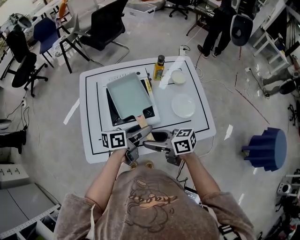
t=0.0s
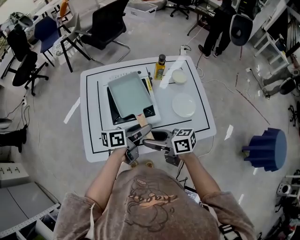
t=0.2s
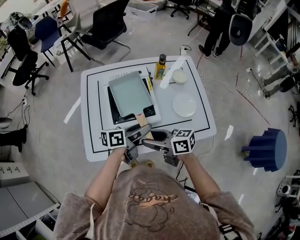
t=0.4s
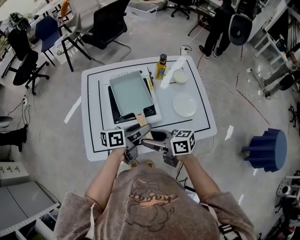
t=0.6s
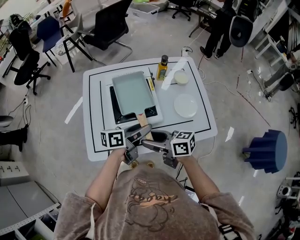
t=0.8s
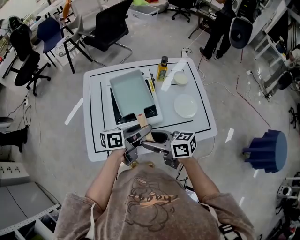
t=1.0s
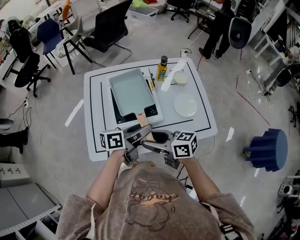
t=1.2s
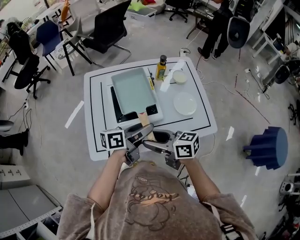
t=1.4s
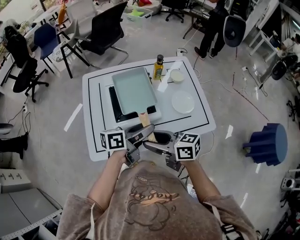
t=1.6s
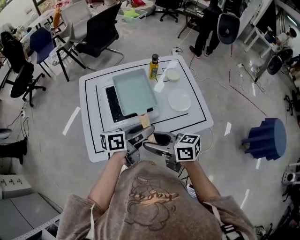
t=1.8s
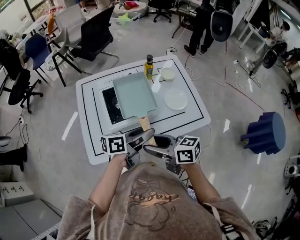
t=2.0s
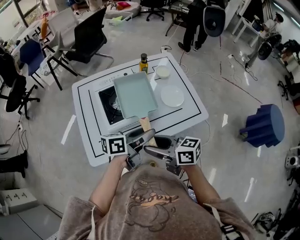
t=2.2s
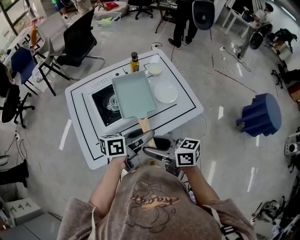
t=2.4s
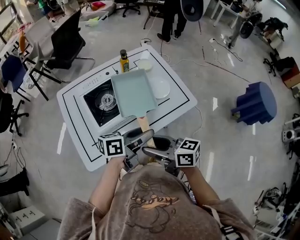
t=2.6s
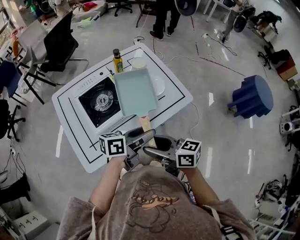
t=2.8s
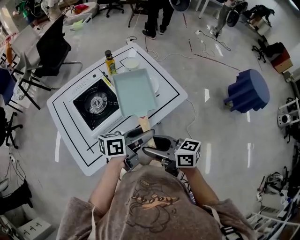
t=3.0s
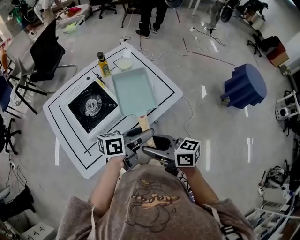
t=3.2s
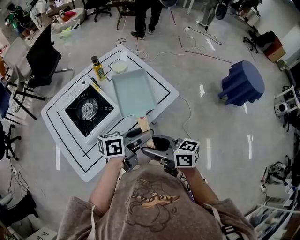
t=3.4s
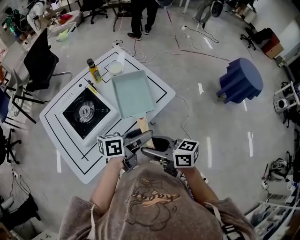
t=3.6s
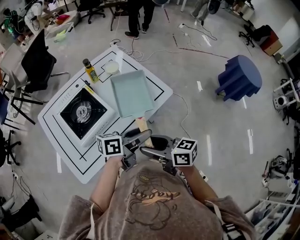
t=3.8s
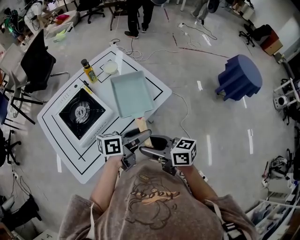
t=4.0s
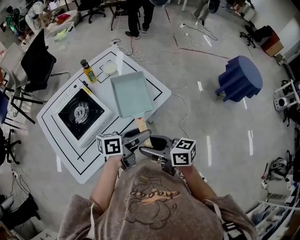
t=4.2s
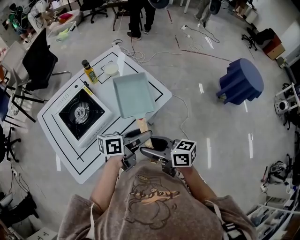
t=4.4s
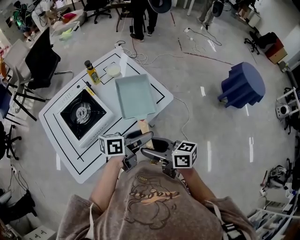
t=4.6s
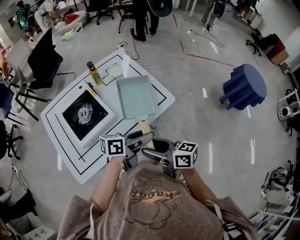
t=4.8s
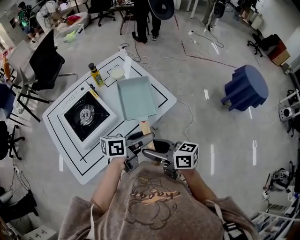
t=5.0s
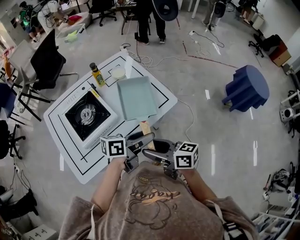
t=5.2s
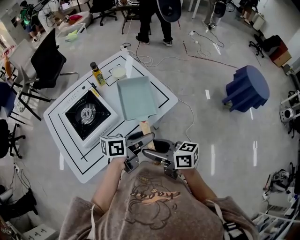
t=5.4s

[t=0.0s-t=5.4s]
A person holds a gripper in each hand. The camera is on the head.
t=0.0s to t=1.4s: The grippers move only a little.
t=1.4s to t=2.8s: The left gripper moves some 15 cm, and rotates roughly 30 degrees. Meanwhile the right gripper changes place by approximately 10 cm, and turns by some 30 degrees.
t=2.8s to t=4.0s: Both grippers travel together to the right, approximately 10 cm.
t=4.0s to t=5.4s: The grippers make only small movements.

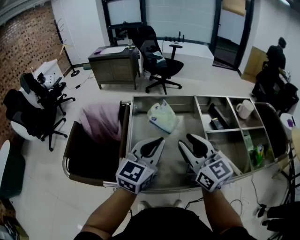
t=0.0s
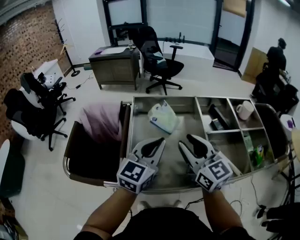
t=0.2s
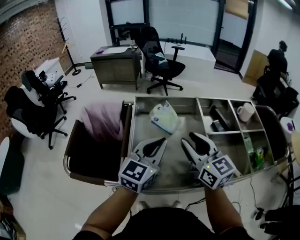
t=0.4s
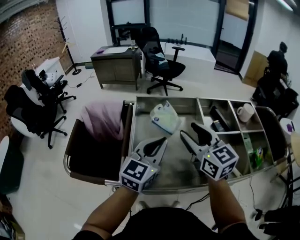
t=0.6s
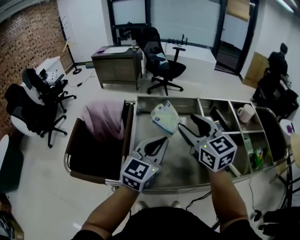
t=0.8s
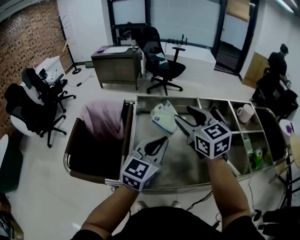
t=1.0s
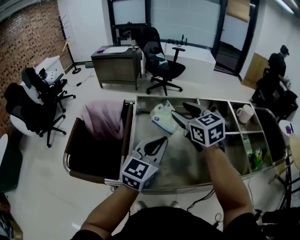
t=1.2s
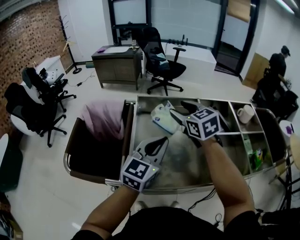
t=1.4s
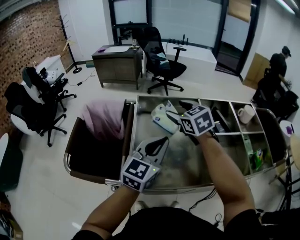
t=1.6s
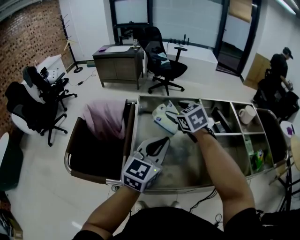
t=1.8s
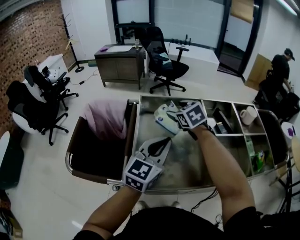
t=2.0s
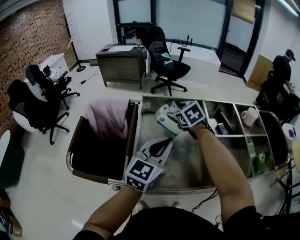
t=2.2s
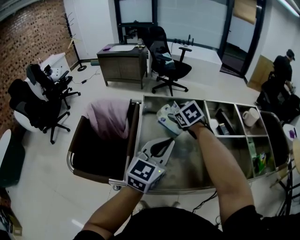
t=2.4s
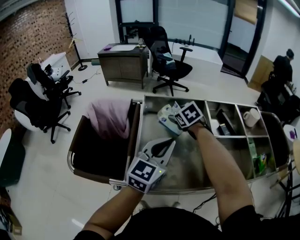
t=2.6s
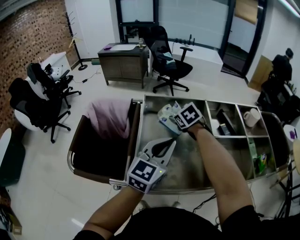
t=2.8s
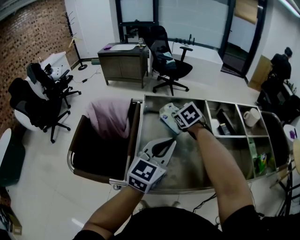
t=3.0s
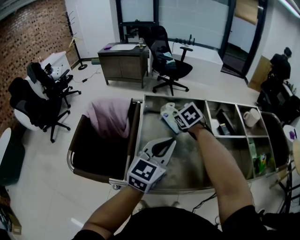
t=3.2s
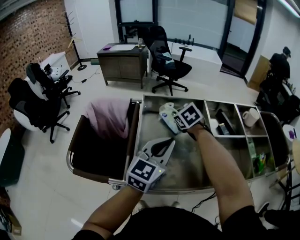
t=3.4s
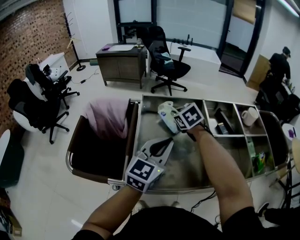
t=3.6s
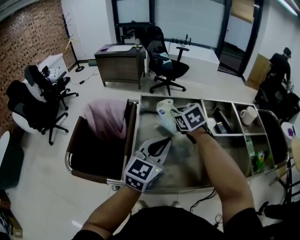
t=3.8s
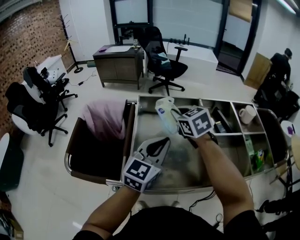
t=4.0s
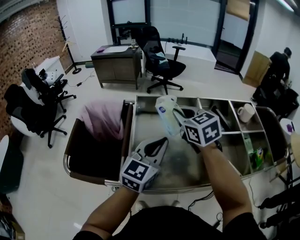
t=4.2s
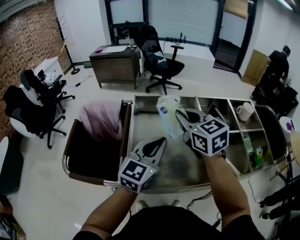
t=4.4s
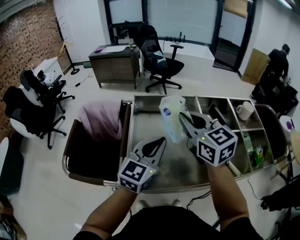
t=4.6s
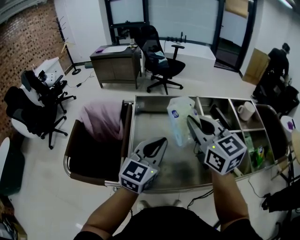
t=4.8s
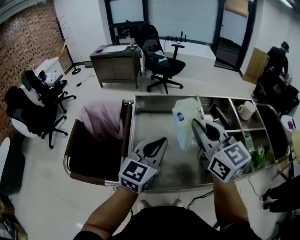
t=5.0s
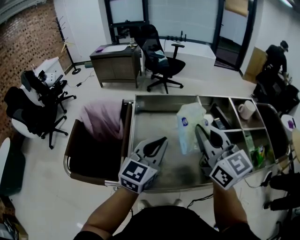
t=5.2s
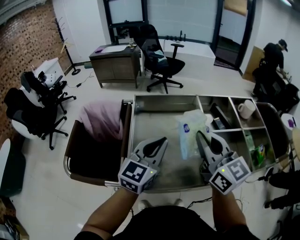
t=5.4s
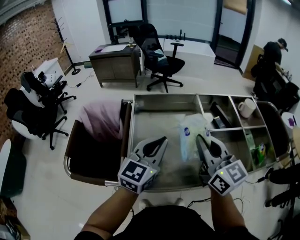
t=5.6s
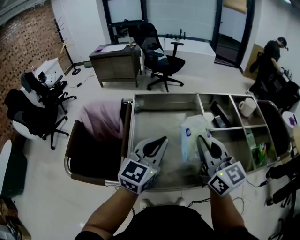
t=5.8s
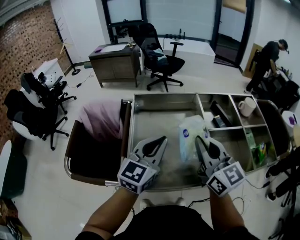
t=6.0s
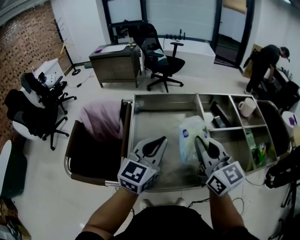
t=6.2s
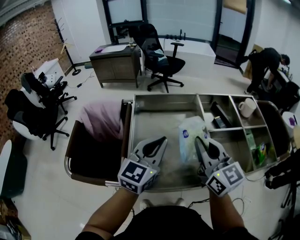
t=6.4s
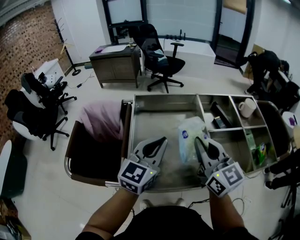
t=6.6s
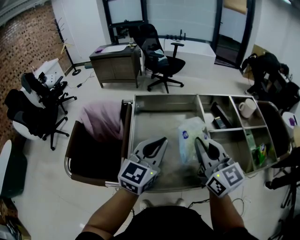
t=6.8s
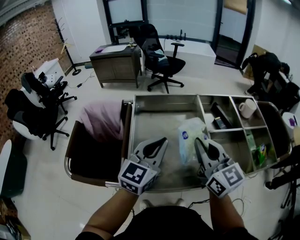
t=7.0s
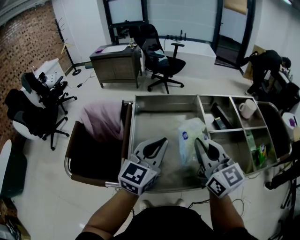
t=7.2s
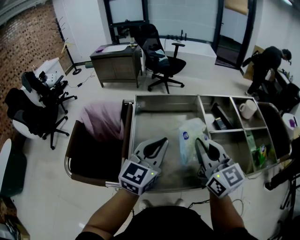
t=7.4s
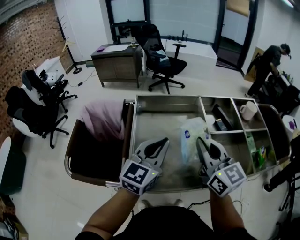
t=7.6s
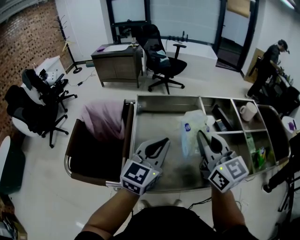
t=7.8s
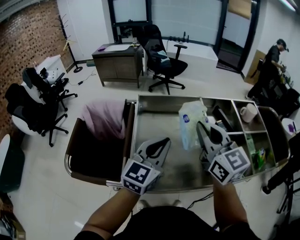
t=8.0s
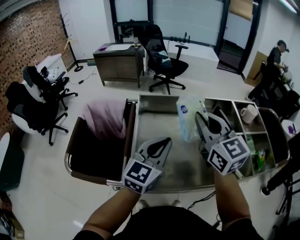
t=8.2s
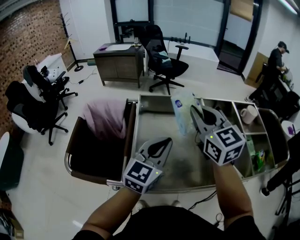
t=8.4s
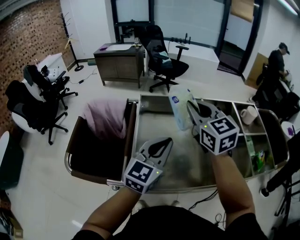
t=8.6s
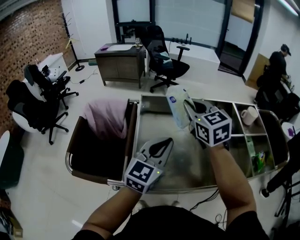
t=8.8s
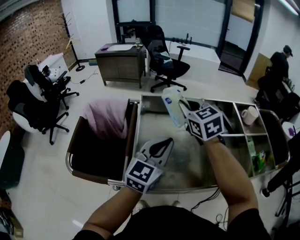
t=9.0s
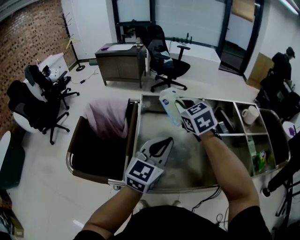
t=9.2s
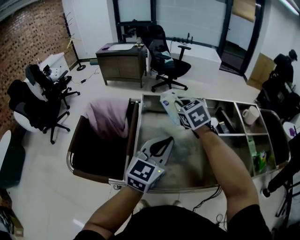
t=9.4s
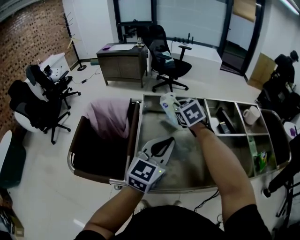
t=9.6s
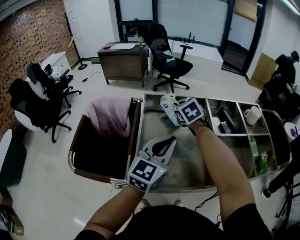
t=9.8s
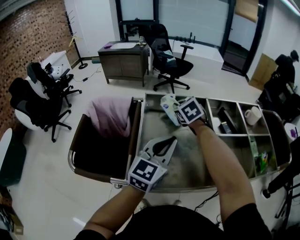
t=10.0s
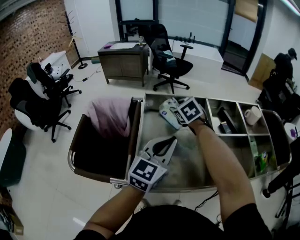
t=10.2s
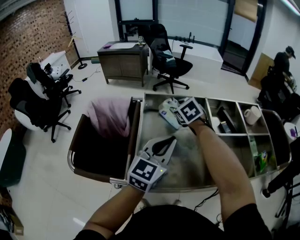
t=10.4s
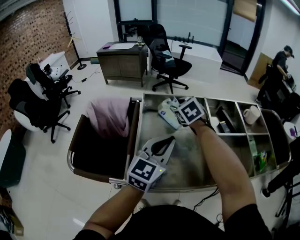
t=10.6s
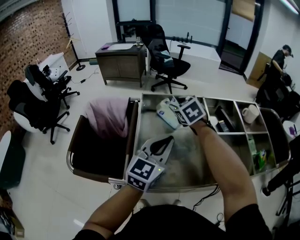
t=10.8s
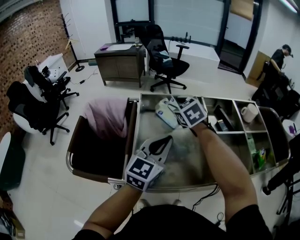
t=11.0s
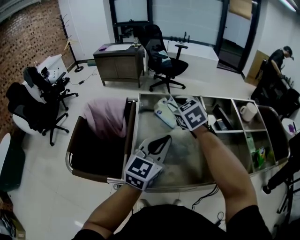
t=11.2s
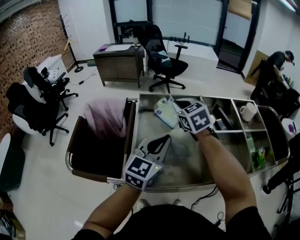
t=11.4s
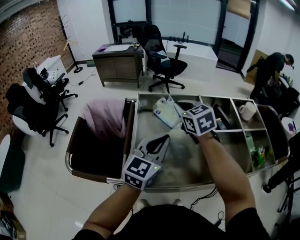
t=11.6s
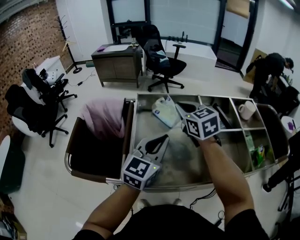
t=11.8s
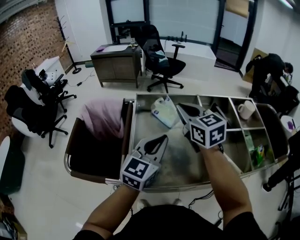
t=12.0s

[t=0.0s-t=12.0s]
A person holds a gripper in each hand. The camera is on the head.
t=0.0s to t=1.6s: The right gripper goes approximately 15 cm forward, swivels roughly 30 degrees, and opens its fingers.
t=1.6s to t=3.0s: The right gripper shifts roughly 10 cm downward, and closes its fingers.
t=3.0s to t=4.4s: The right gripper goes about 20 cm upward and backward, and angles its fingers upward, by roughly 30 degrees.
t=4.4s to t=6.0s: The right gripper is displaced backward and to the right by some 15 cm, and turns by some 20 degrees.
t=6.0s to t=7.6s: Neither gripper changes place.
t=7.6s to t=9.0s: The right gripper moves forward and to the left, roughly 20 cm, and turns by approximately 30 degrees.
t=9.0s to t=10.4s: The right gripper travels downward and forward by approximately 15 cm, swivels about 20 degrees, and opens.
t=10.4s to t=12.0s: The right gripper is displaced upward and backward by about 15 cm, turns by some 30 degrees, and closes up.

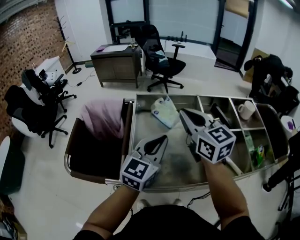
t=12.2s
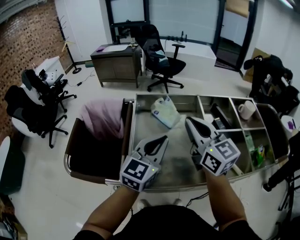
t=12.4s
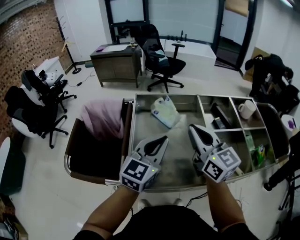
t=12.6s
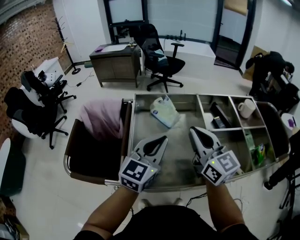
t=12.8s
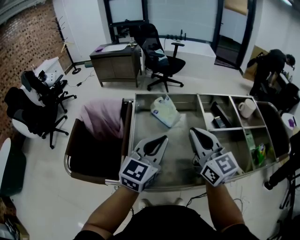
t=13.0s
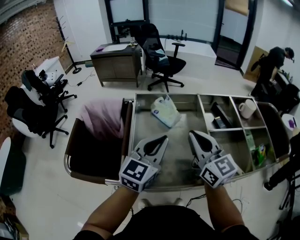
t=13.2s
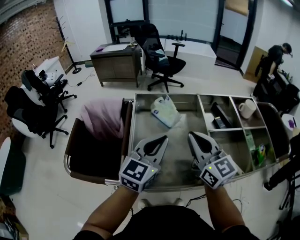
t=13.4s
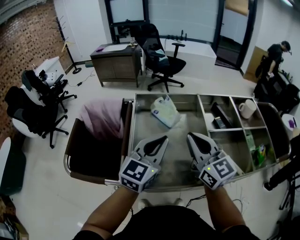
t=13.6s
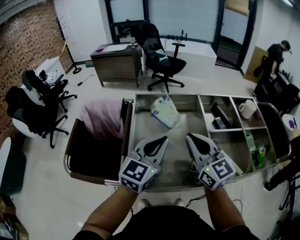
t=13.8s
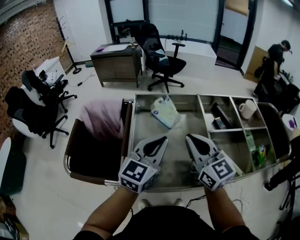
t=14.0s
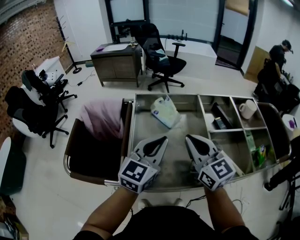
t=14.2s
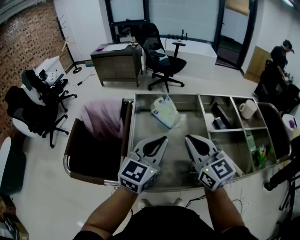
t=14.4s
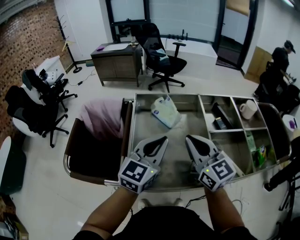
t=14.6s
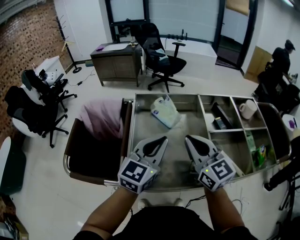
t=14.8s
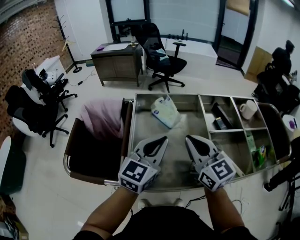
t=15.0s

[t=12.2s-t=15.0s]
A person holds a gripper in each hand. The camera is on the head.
t=12.2s to t=13.6s: The right gripper shifts roughly 5 cm backward.
t=13.6s to t=15.0s: Both grippers stay about where they are.

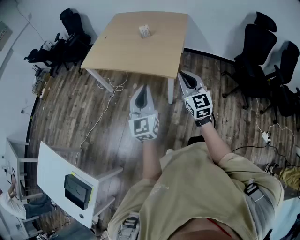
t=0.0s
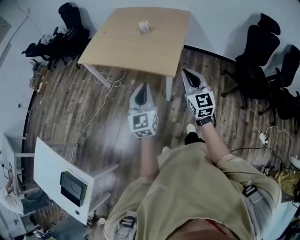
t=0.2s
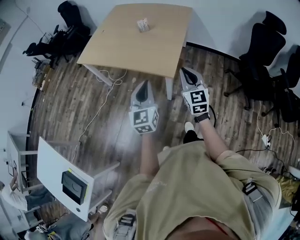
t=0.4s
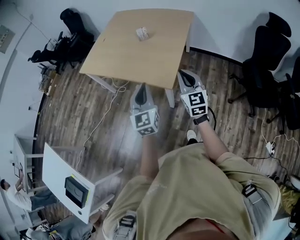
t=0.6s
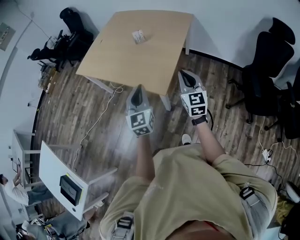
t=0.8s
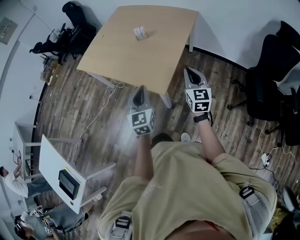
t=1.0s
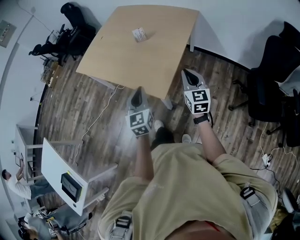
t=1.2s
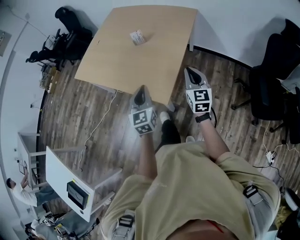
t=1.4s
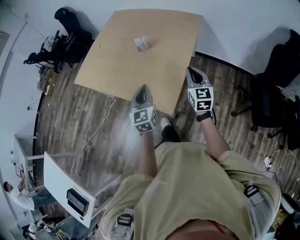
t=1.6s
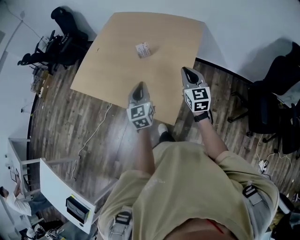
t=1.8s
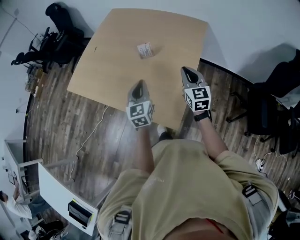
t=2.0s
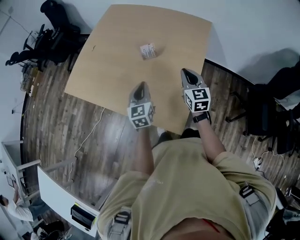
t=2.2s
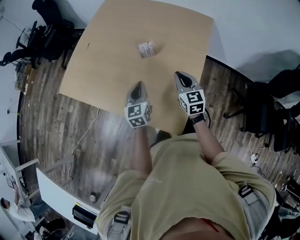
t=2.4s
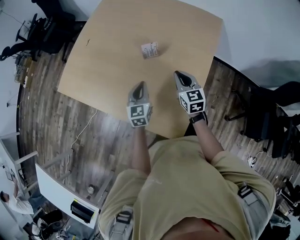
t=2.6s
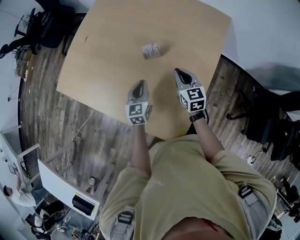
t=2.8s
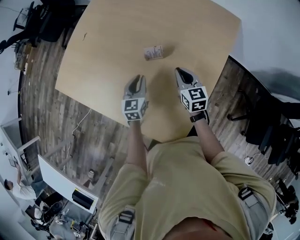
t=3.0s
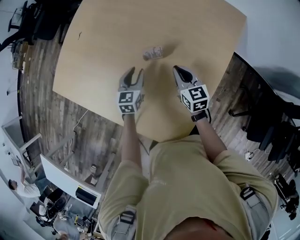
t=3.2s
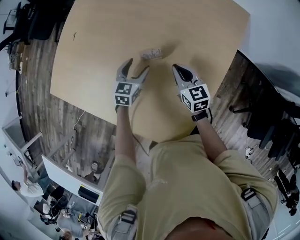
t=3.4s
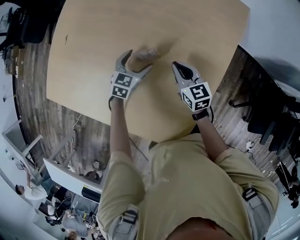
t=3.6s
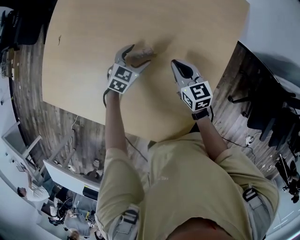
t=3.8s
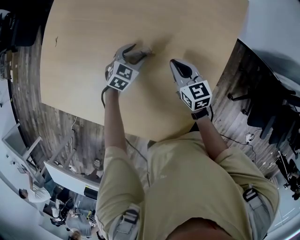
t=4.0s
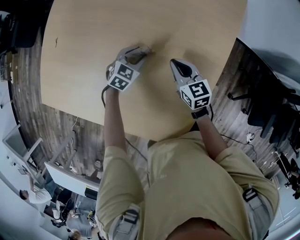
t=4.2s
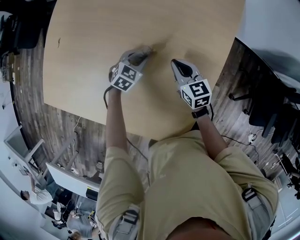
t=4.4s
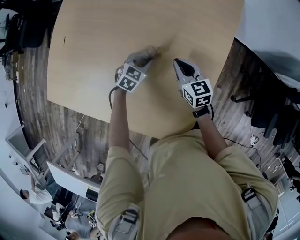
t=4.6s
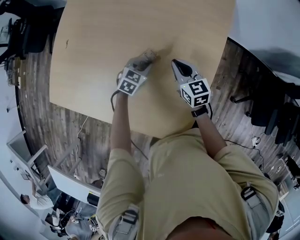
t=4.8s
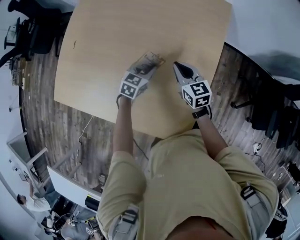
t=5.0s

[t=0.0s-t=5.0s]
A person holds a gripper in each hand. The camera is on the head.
t=0.0s to t=1.6s: The pair of grippers is taken forward and to the right, approximately 40 cm. The left gripper swivels about 20 degrees.
t=1.6s to t=3.4s: The pair of grippers is taken forward, some 50 cm. The two grippers go approximately 25 cm downward. The right gripper rotates about 30 degrees. The left gripper changes its angle by some 30 degrees, and opens.
t=3.4s to t=5.0s: The right gripper shifts by some 5 cm. The left gripper heads to the right, covering about 10 cm, reaches some 5 cm downward, then returns, rotates some 20 degrees, and closes its fingers.
